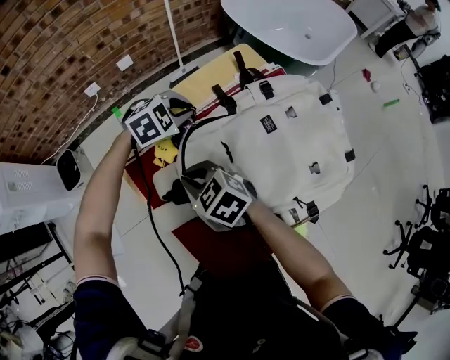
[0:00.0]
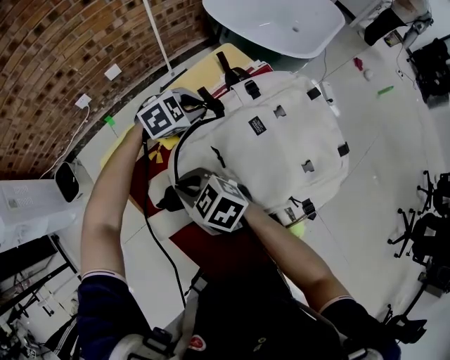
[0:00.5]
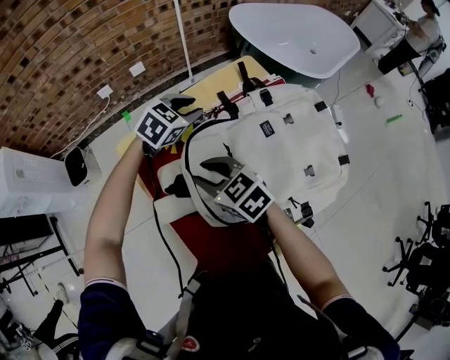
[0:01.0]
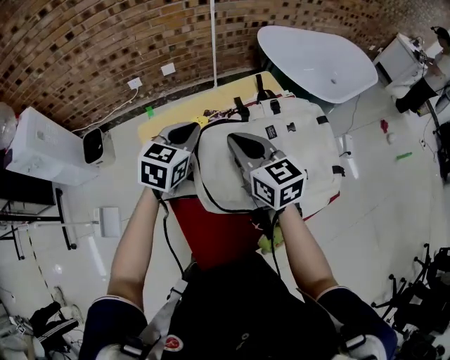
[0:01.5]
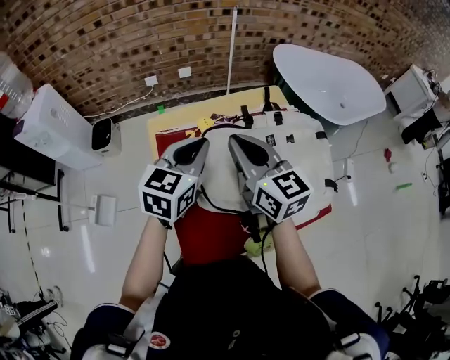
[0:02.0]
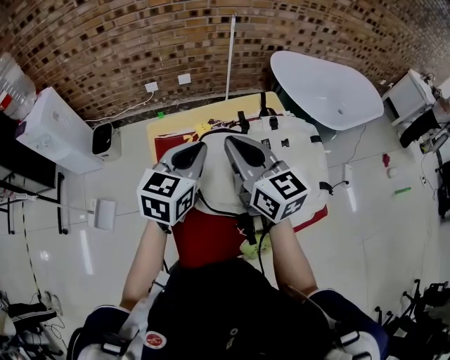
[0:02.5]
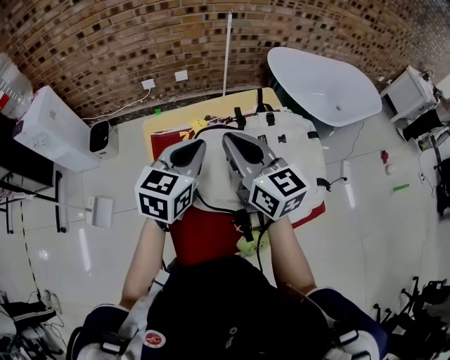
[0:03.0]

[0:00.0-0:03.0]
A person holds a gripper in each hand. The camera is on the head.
0:00.0 to 0:01.5: Both grippers move upward, roughly 15 cm. The left gripper rotates roughly 60 degrees, and opens, then closes again. The right gripper changes its angle by approximately 30 degrees, and opens, then closes once more.
0:01.5 to 0:03.0: The left gripper is displaced backward and upward by roughly 10 cm, while the right gripper heads upward, covering approximately 10 cm.

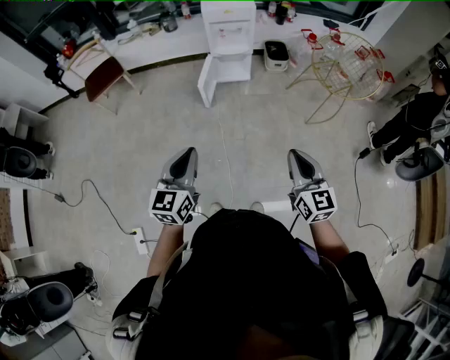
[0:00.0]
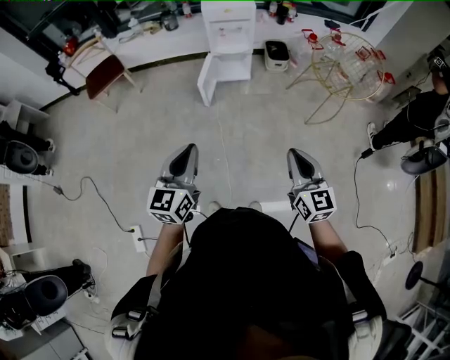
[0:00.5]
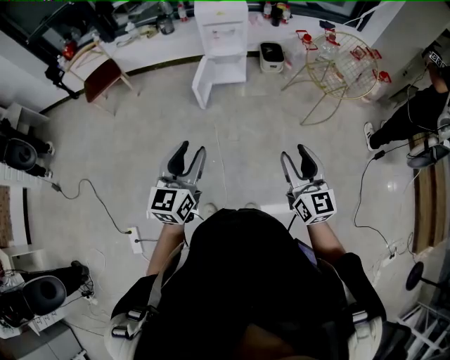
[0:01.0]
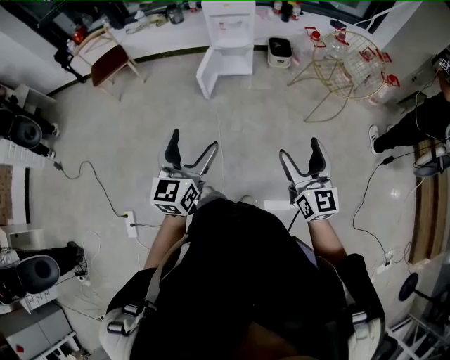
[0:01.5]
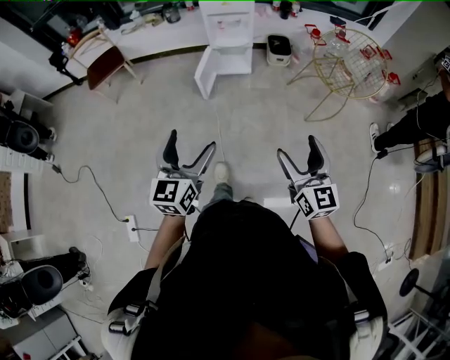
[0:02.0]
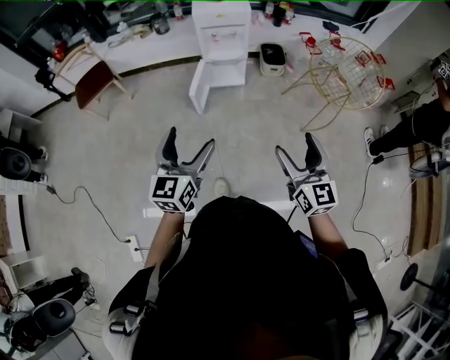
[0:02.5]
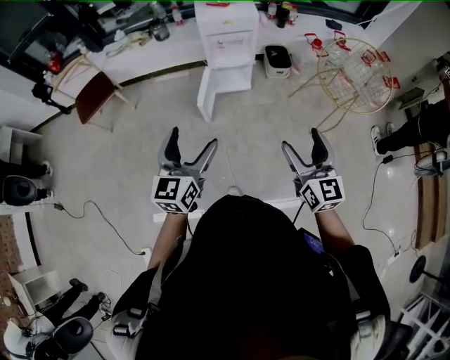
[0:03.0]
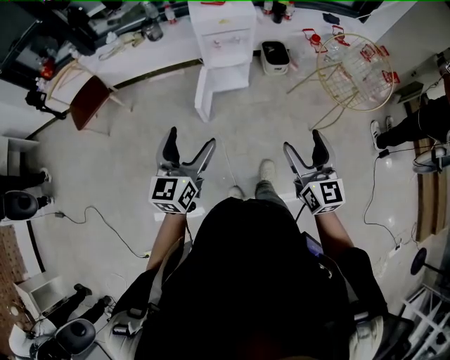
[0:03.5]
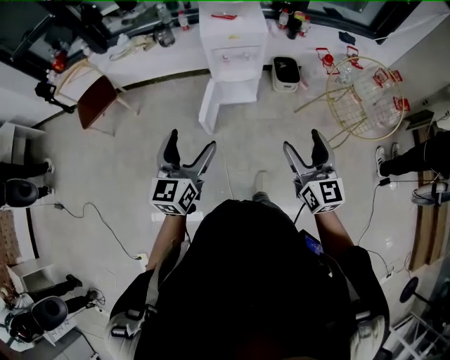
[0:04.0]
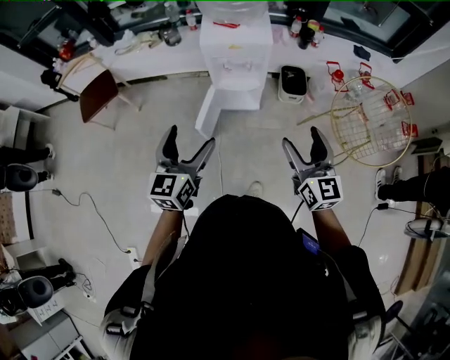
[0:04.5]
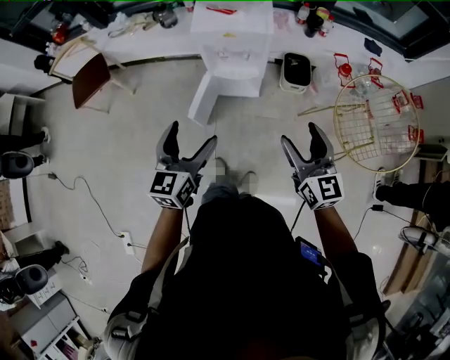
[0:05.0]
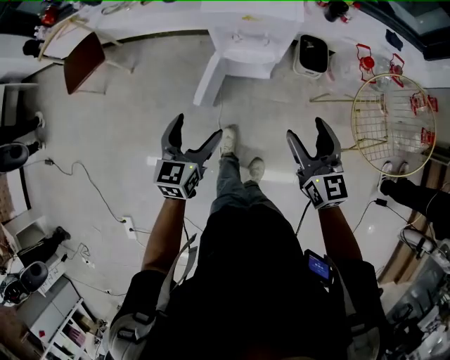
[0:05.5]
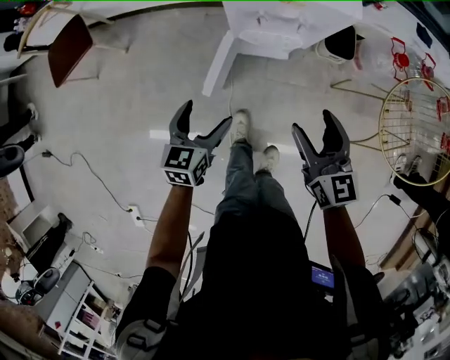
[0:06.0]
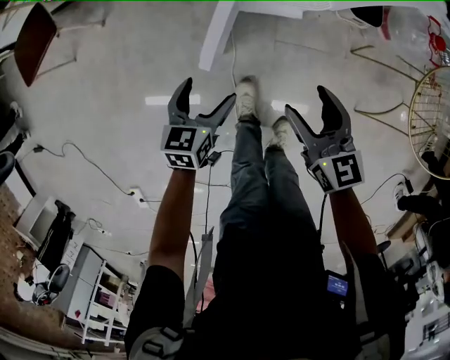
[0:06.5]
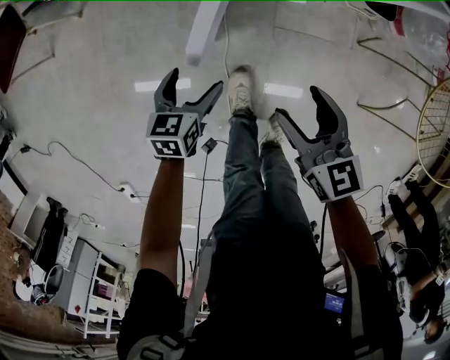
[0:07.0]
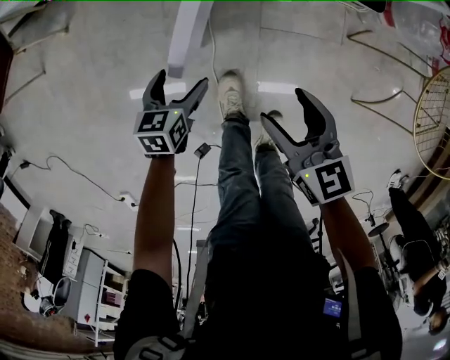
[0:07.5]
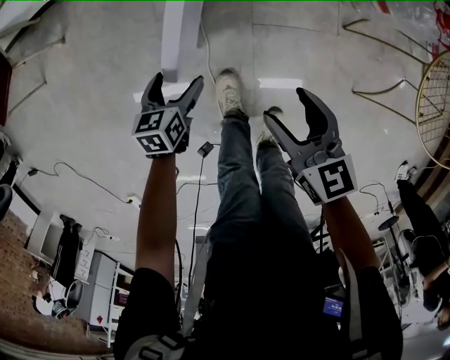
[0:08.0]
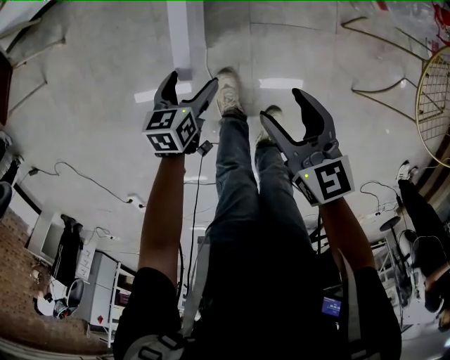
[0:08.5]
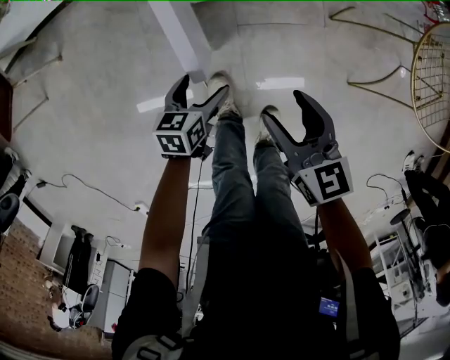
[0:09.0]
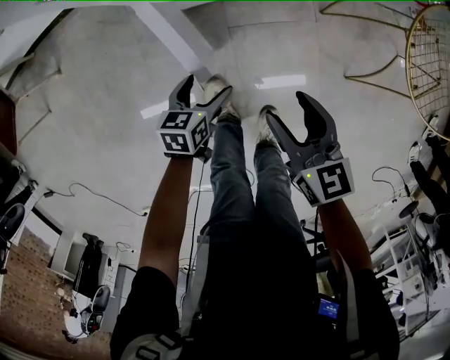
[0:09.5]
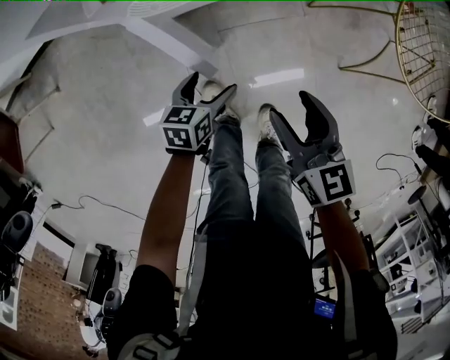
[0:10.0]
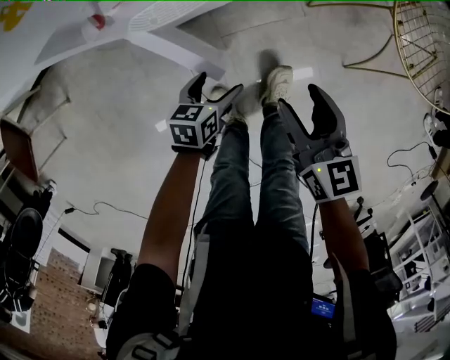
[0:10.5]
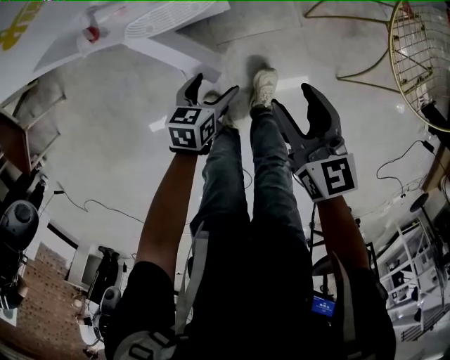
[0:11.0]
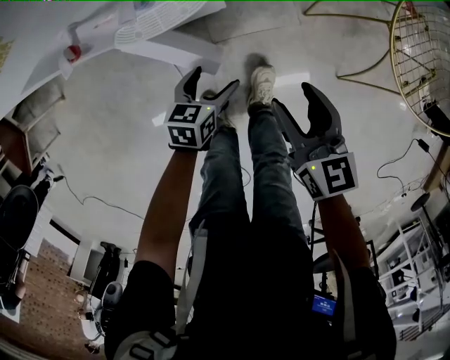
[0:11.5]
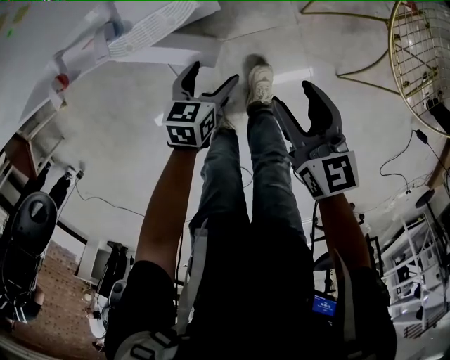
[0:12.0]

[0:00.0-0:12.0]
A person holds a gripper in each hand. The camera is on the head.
0:00.0 to 0:02.0: Both grippers travel together to the right, approximately 5 cm. The right gripper opens, while the left gripper opens.
0:02.0 to 0:04.0: The grippers both shift forward by approximately 30 cm.
0:04.0 to 0:06.0: The right gripper is displaced forward and downward by approximately 35 cm, and changes its angle by approximately 20 degrees; the left gripper is displaced downward and forward by some 35 cm, and swivels about 30 degrees.
0:06.0 to 0:08.0: The grippers both shift downward by some 30 cm.
0:08.0 to 0:10.0: The left gripper shifts by some 20 cm, and changes its angle by about 20 degrees, while the right gripper shifts by about 10 cm, and changes its angle by some 20 degrees.
0:10.0 to 0:12.0: The two grippers go about 10 cm forward and to the right.

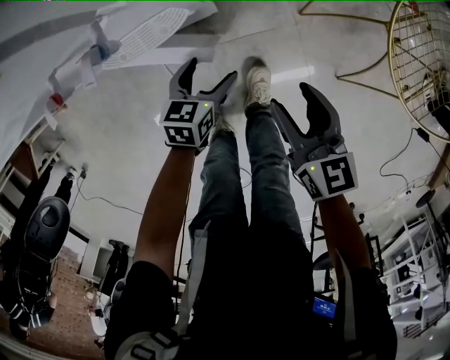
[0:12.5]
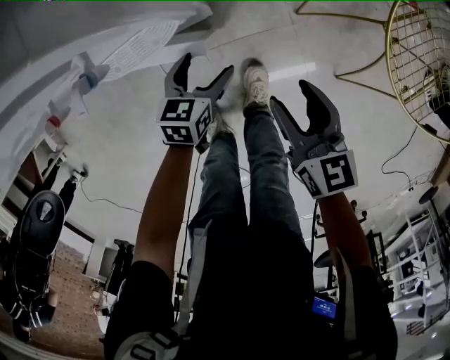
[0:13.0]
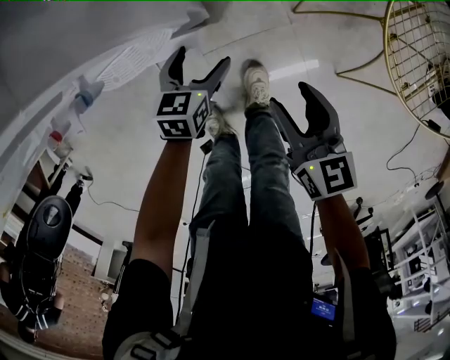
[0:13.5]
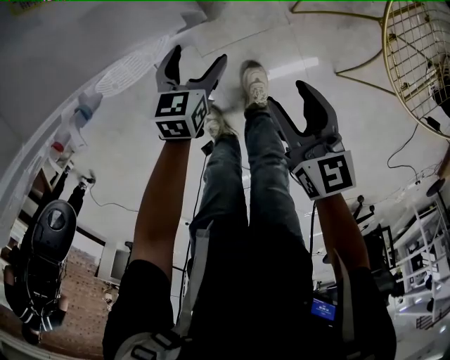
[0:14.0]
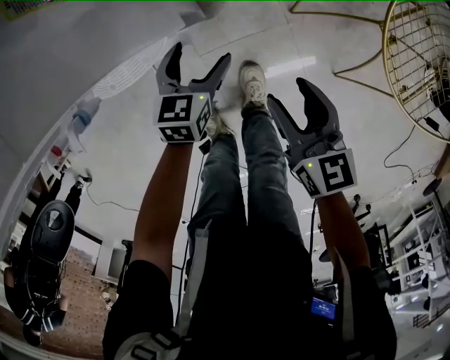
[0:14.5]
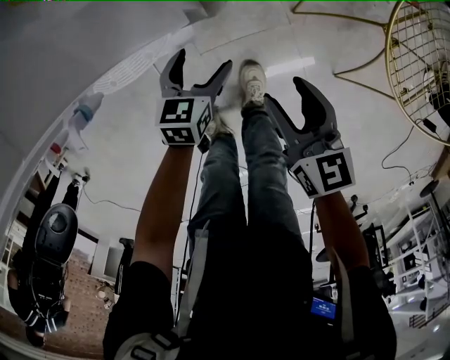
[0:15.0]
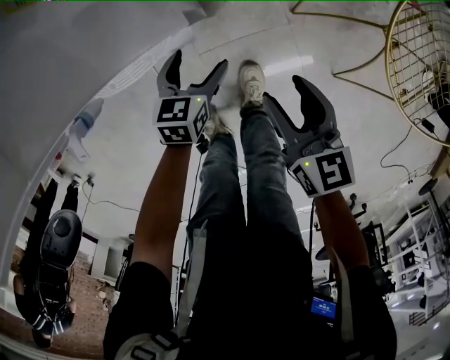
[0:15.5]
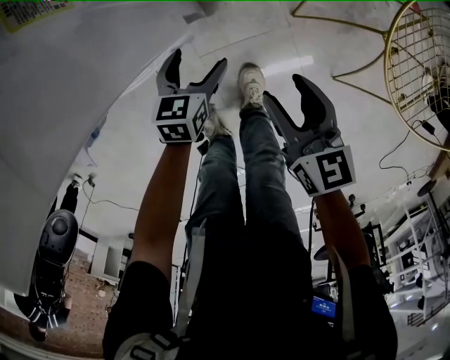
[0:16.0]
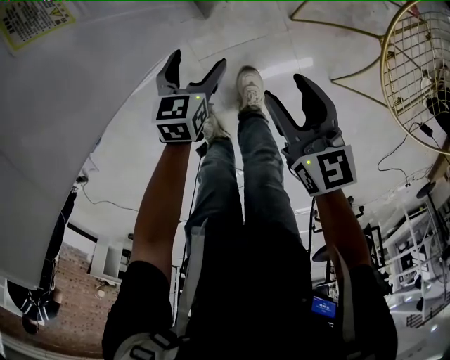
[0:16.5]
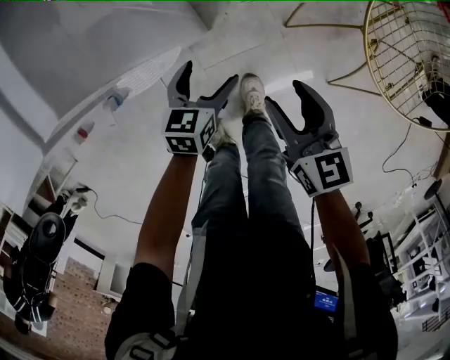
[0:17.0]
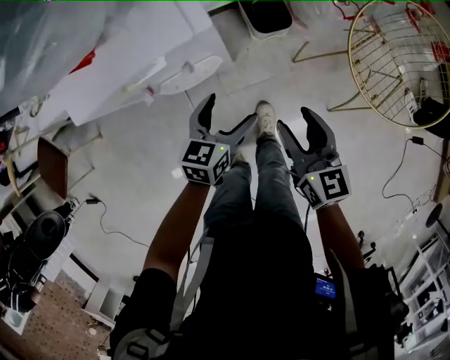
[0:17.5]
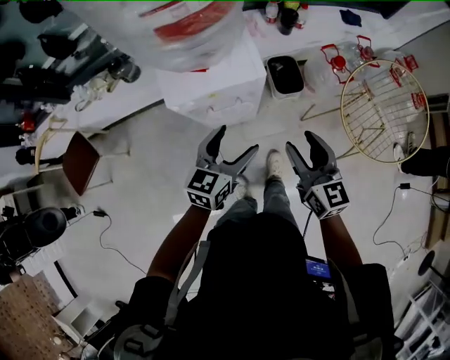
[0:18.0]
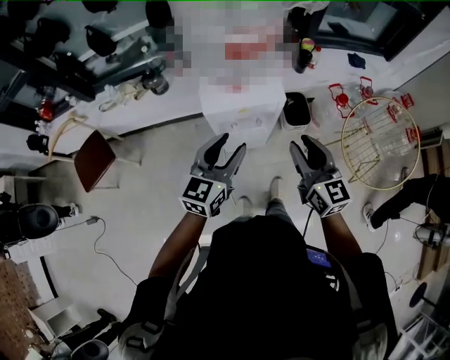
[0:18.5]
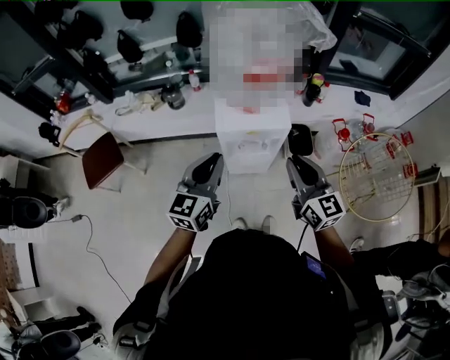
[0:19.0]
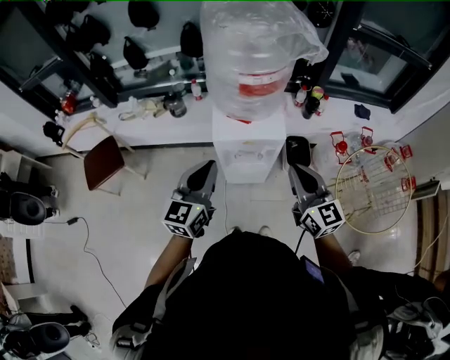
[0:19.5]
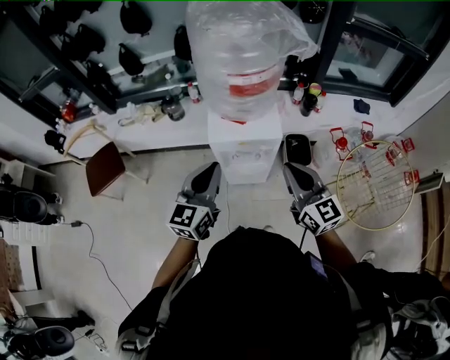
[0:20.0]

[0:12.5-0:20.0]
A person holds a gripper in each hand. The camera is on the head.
0:12.5 to 0:14.5: The right gripper moves approximately 5 cm, while the left gripper shifts roughly 10 cm forward.
0:14.5 to 0:16.5: There are only small adjustments of the grippers.
0:16.5 to 0:18.0: Both grippers travel together upward, about 40 cm. The right gripper rotates approximately 20 degrees. Meanwhile the left gripper changes its angle by about 30 degrees.
0:18.0 to 0:20.0: Both grippers travel together upward and to the left, some 20 cm. The right gripper changes its angle by approximately 20 degrees, and closes its fingers, while the left gripper rotates roughly 30 degrees, and closes up.

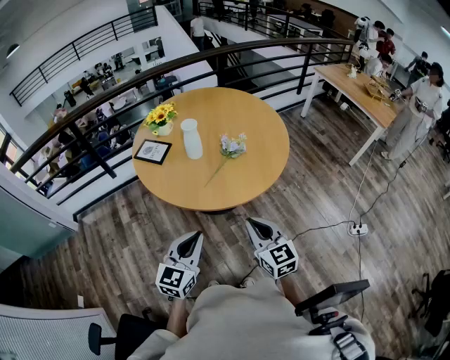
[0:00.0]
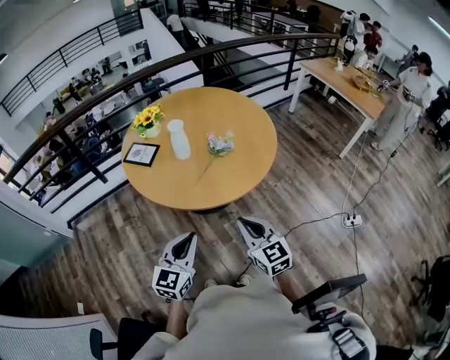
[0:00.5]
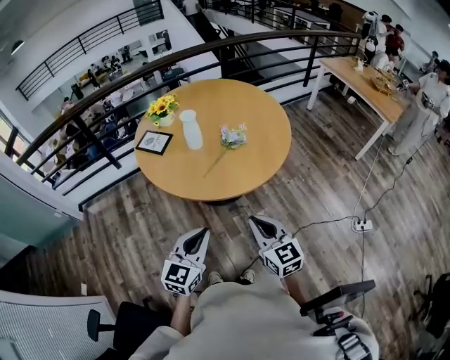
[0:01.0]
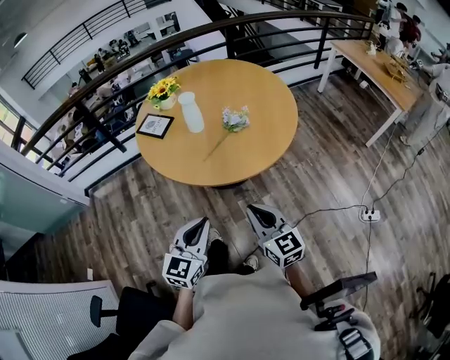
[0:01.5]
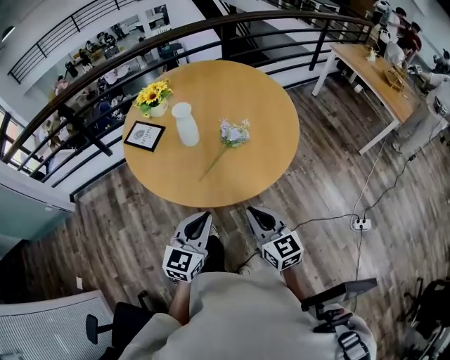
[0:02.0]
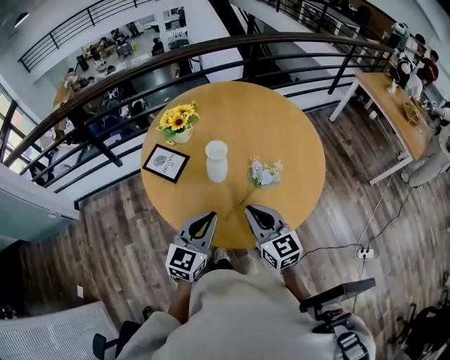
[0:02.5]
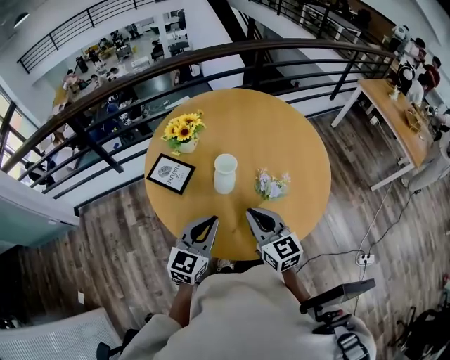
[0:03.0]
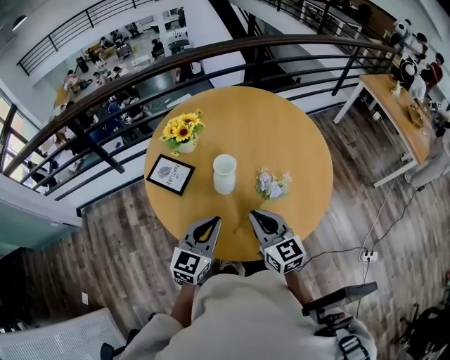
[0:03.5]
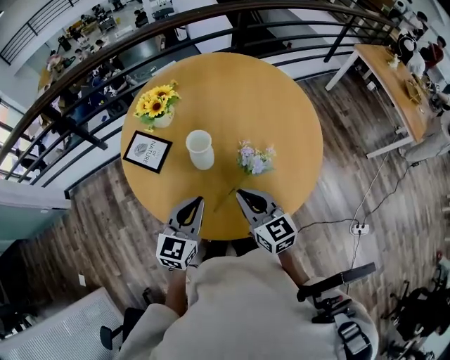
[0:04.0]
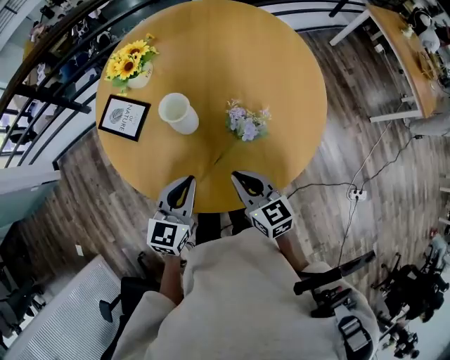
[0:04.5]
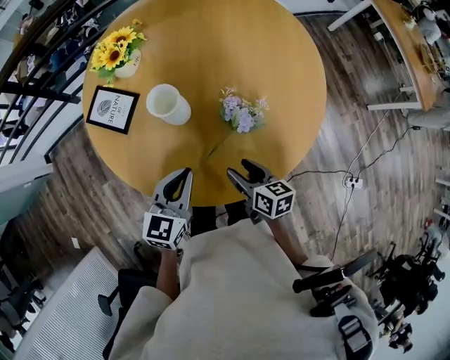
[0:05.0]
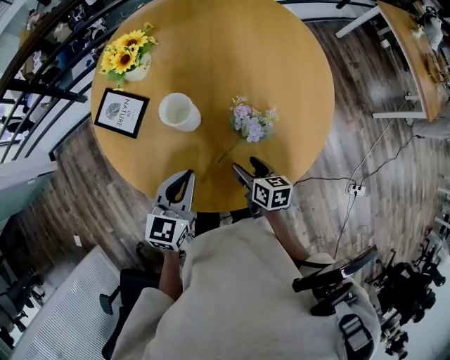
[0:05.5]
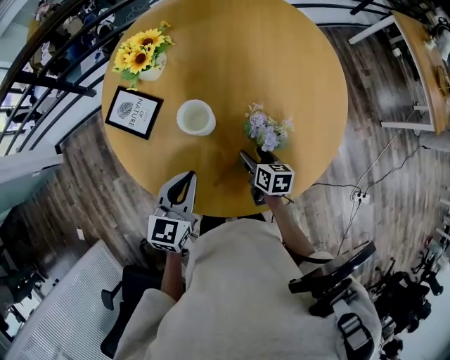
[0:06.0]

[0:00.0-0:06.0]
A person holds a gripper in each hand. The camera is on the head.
0:00.0 to 0:02.0: The right gripper shifts about 5 cm forward, while the left gripper is displaced forward and to the right by some 10 cm.
0:02.0 to 0:04.0: Both grippers travel together forward, some 20 cm.
0:04.0 to 0:06.0: The right gripper moves downward, approximately 20 cm, swivels some 40 degrees, and opens its fingers. The left gripper heads downward, covering some 5 cm.
